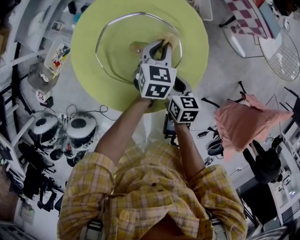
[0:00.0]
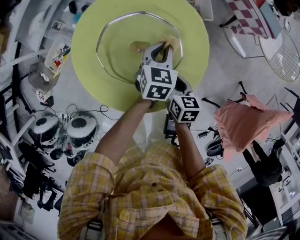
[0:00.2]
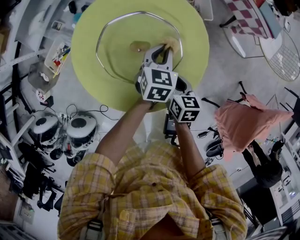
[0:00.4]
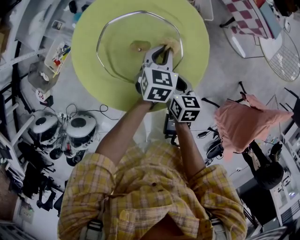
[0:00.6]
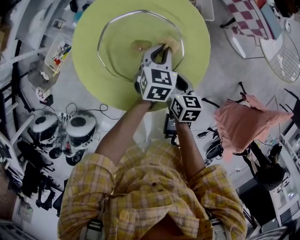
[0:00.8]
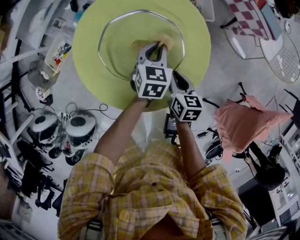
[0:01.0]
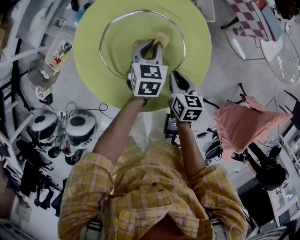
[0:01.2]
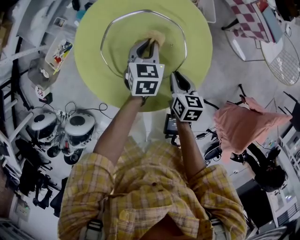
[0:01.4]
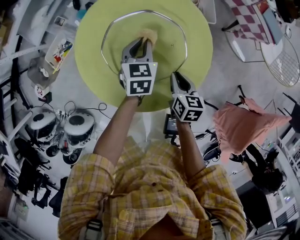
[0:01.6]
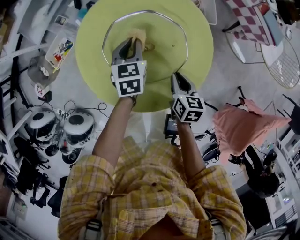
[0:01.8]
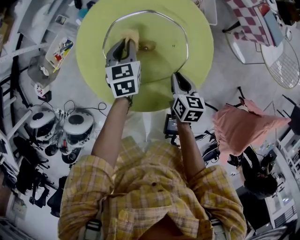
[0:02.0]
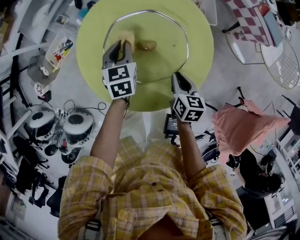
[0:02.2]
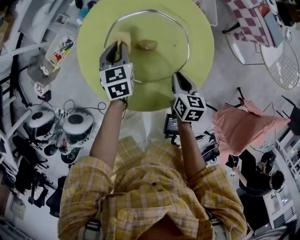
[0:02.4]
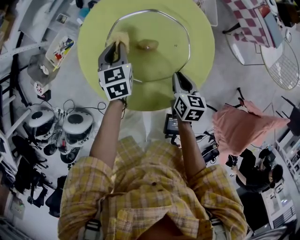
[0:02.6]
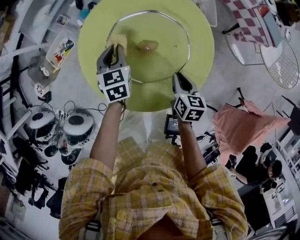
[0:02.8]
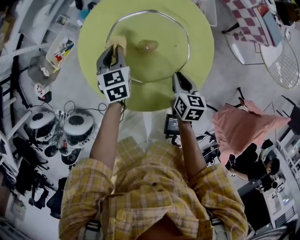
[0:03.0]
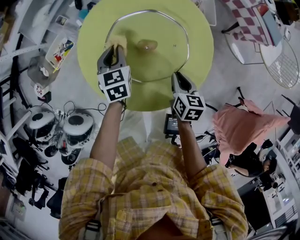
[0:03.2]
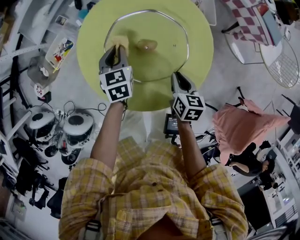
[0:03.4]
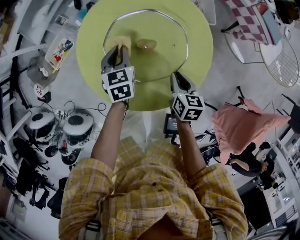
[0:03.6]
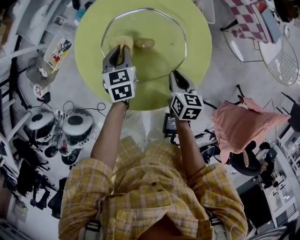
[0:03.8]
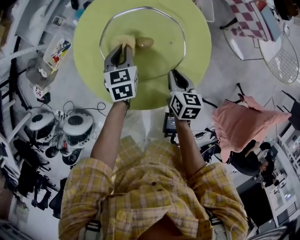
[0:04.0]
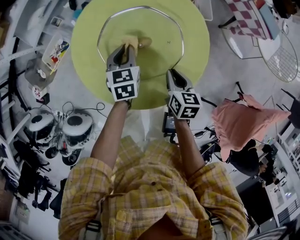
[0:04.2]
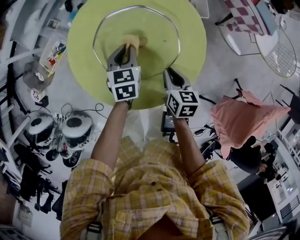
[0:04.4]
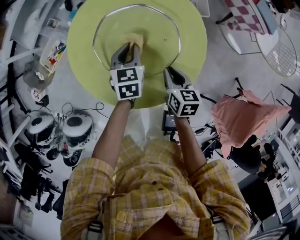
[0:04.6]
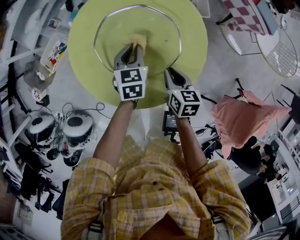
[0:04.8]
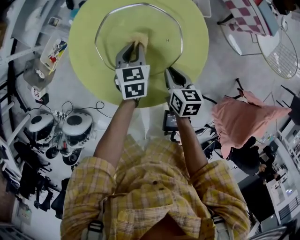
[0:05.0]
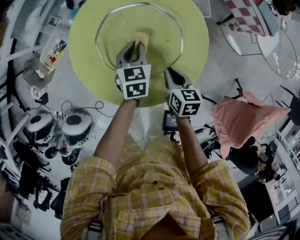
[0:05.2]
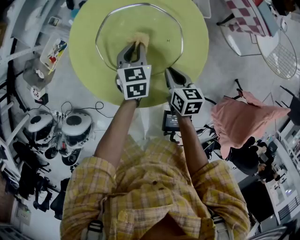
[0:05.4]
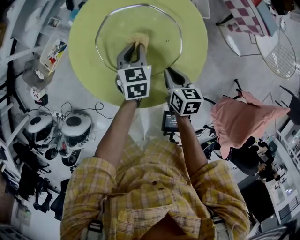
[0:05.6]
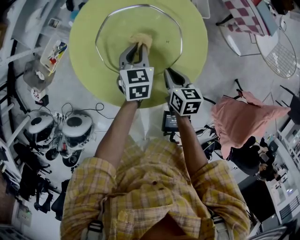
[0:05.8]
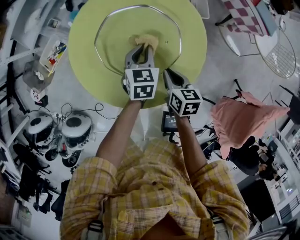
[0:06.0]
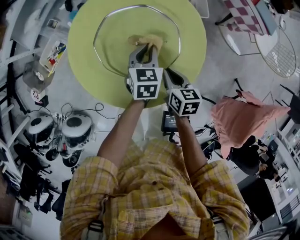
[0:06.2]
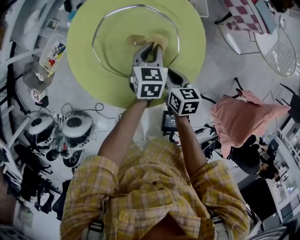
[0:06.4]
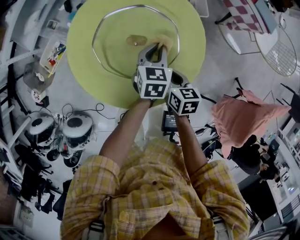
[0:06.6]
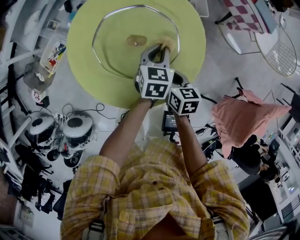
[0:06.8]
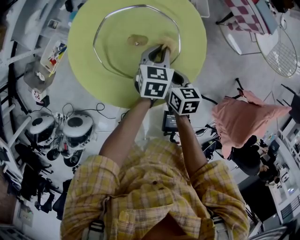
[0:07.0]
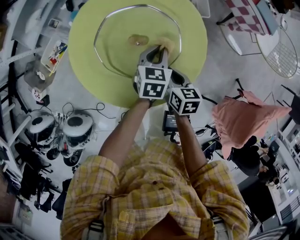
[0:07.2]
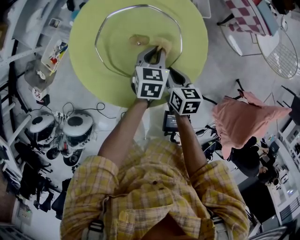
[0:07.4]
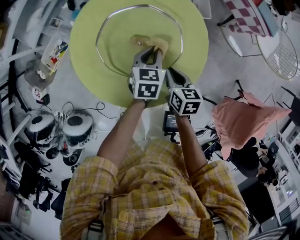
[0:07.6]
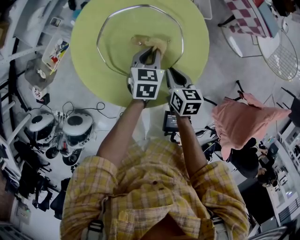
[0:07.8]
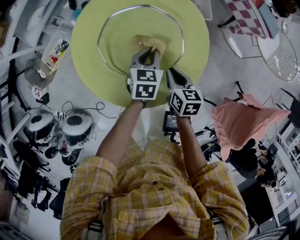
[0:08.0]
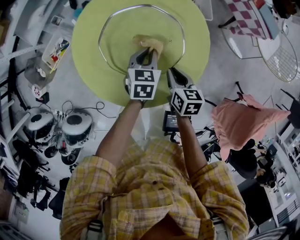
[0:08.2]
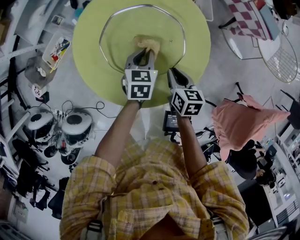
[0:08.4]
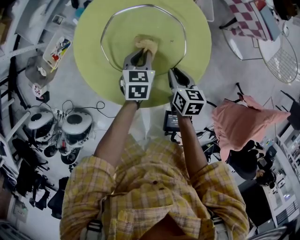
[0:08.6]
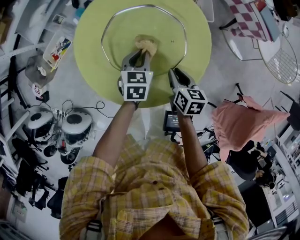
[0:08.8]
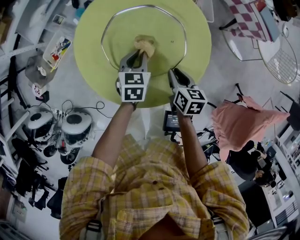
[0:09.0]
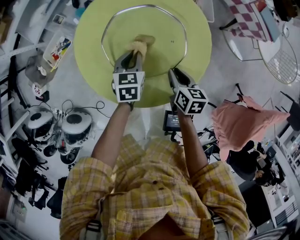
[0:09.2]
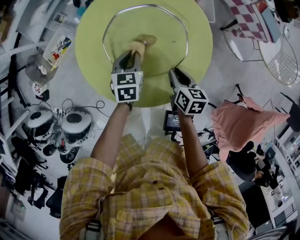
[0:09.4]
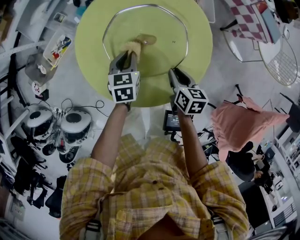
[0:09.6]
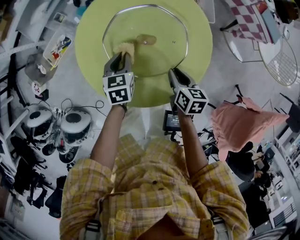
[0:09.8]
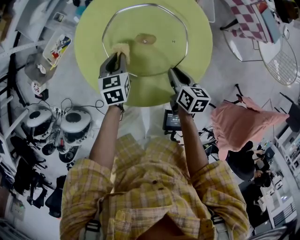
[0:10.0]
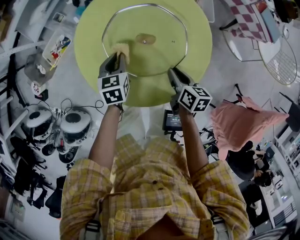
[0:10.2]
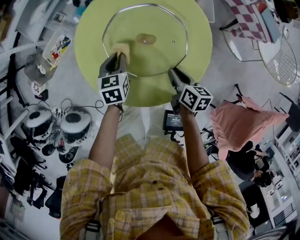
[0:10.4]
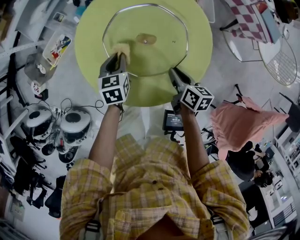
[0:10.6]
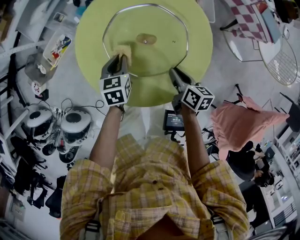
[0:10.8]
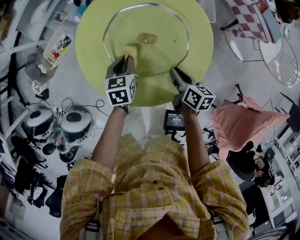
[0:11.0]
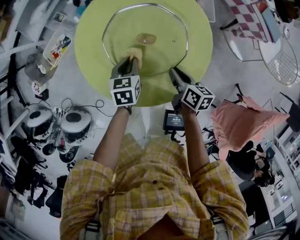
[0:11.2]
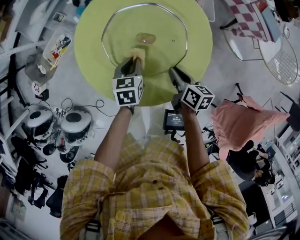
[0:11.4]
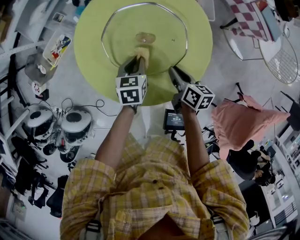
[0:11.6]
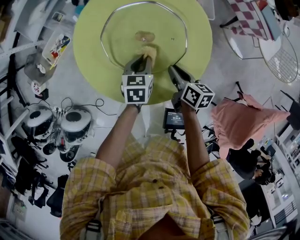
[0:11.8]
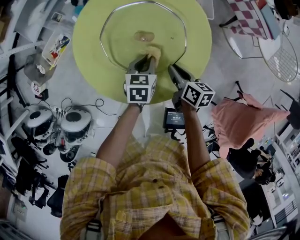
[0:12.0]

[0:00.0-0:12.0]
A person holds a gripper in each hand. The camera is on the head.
0:00.0 to 0:01.6: The left gripper goes about 10 cm to the left.
0:01.6 to 0:03.0: The left gripper travels to the left by approximately 10 cm.
0:03.0 to 0:04.4: The left gripper travels to the right by approximately 10 cm.
0:04.4 to 0:06.0: The left gripper is displaced to the right by some 5 cm.
0:07.6 to 0:09.0: The left gripper goes roughly 10 cm to the left.
0:09.0 to 0:10.4: The left gripper is displaced to the left by approximately 10 cm.
0:10.4 to 0:12.0: The left gripper shifts approximately 10 cm to the right.

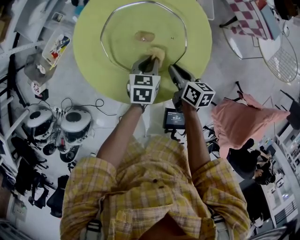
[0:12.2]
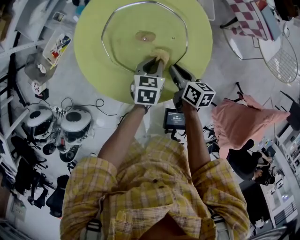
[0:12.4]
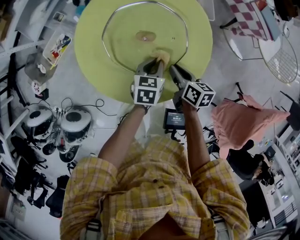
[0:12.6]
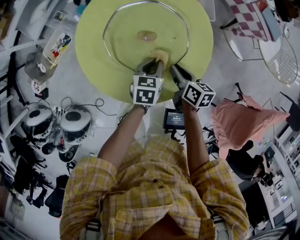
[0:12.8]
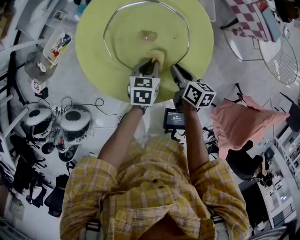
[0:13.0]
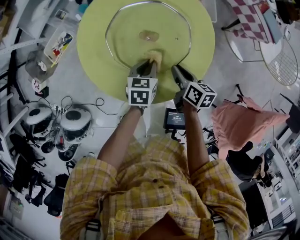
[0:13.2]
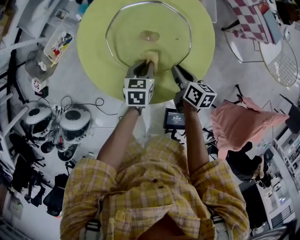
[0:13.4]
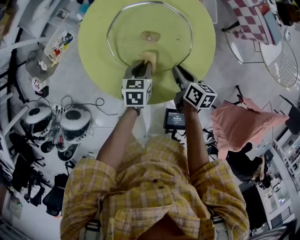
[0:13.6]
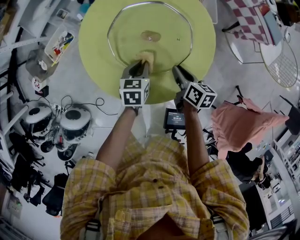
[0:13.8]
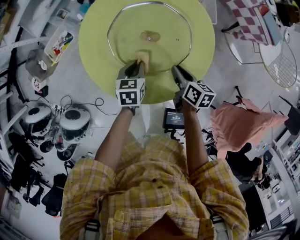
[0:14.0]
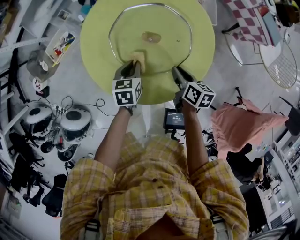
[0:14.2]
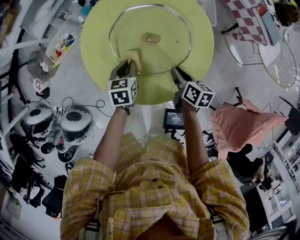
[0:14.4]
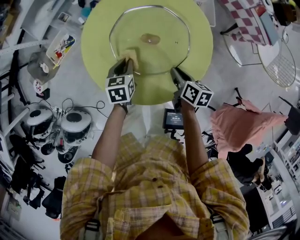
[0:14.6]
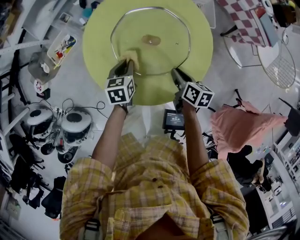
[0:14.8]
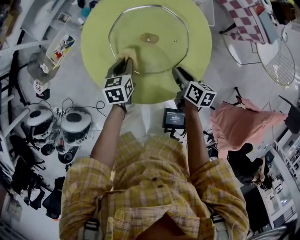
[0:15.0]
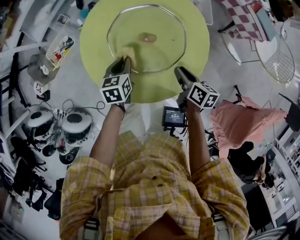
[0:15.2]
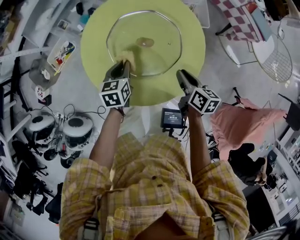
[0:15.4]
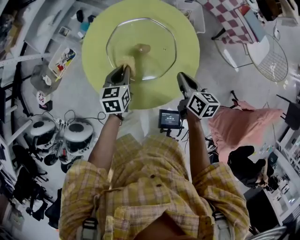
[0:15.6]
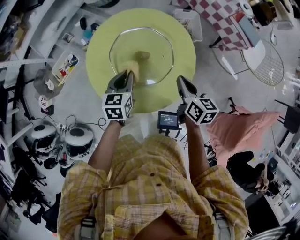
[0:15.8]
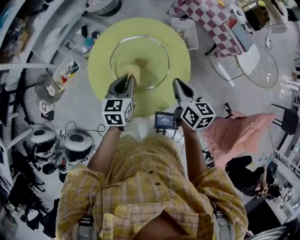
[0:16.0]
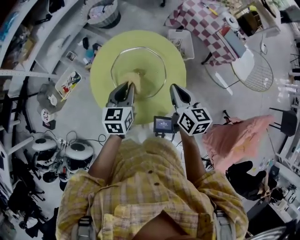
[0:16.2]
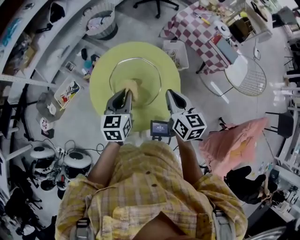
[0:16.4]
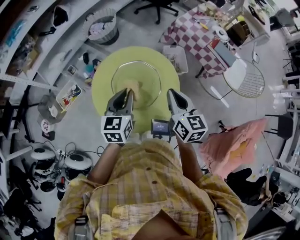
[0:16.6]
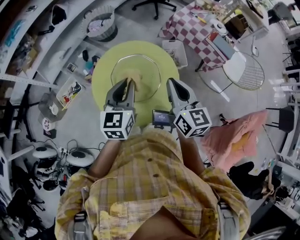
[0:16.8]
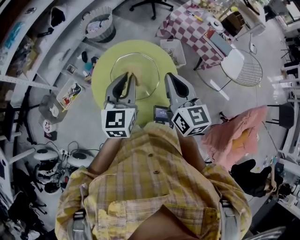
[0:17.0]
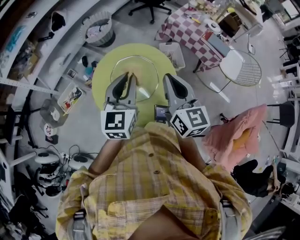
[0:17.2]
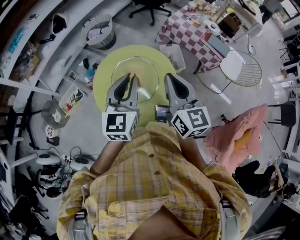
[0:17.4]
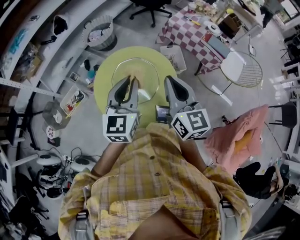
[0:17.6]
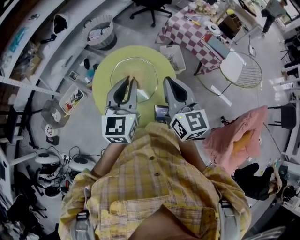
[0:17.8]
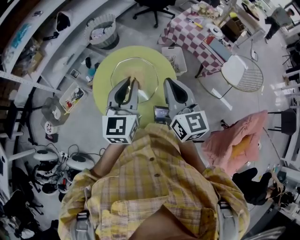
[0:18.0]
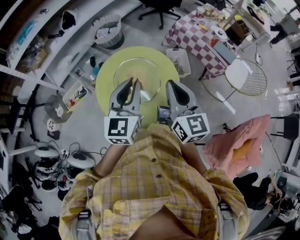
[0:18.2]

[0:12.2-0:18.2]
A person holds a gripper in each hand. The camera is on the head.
0:12.2 to 0:13.8: The left gripper heads to the left, covering approximately 5 cm.
0:13.8 to 0:15.2: The left gripper is displaced to the left by roughly 5 cm.
0:15.2 to 0:16.6: Both grippers move upward, some 35 cm. The right gripper changes its angle by roughly 40 degrees, and closes up; the left gripper changes its angle by some 30 degrees.
0:16.6 to 0:18.2: The left gripper moves upward, backward and to the right, roughly 15 cm, and rotates about 20 degrees; the right gripper moves upward and backward, some 10 cm.

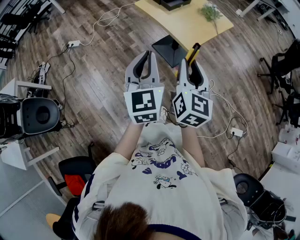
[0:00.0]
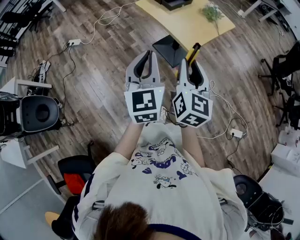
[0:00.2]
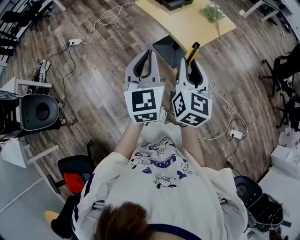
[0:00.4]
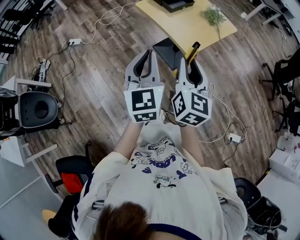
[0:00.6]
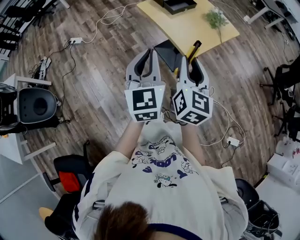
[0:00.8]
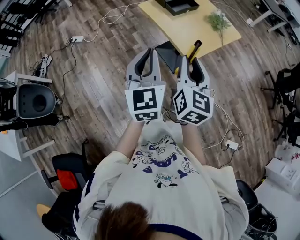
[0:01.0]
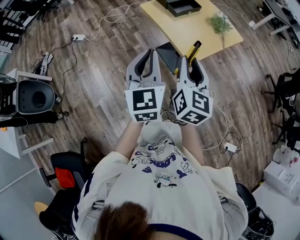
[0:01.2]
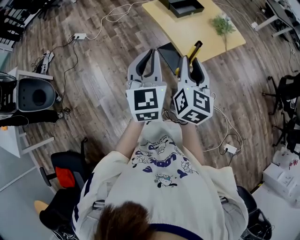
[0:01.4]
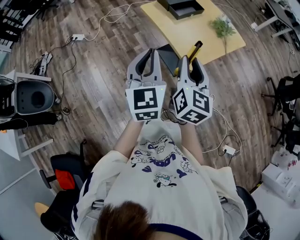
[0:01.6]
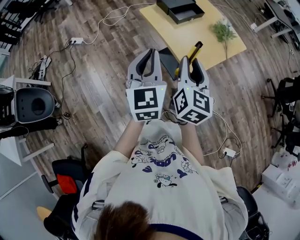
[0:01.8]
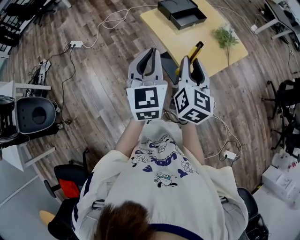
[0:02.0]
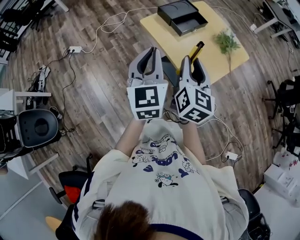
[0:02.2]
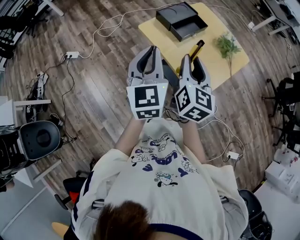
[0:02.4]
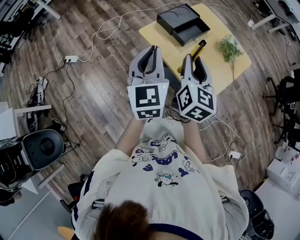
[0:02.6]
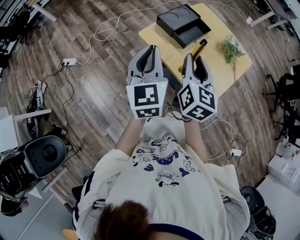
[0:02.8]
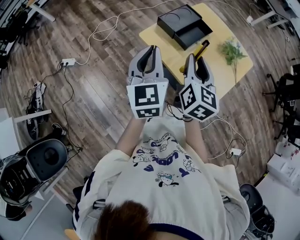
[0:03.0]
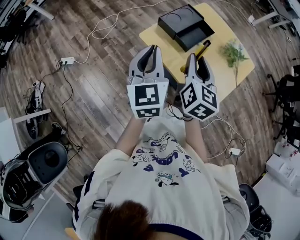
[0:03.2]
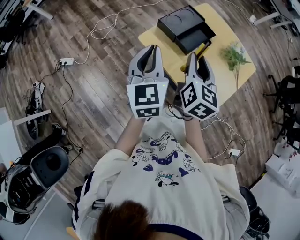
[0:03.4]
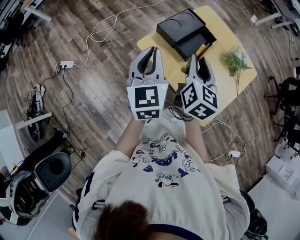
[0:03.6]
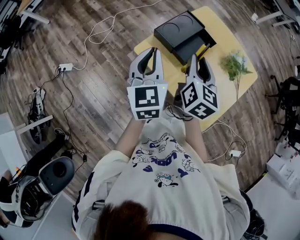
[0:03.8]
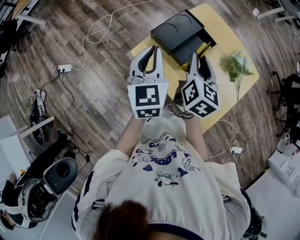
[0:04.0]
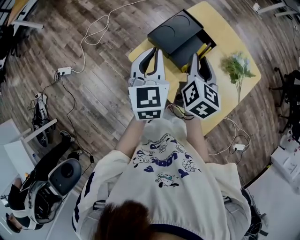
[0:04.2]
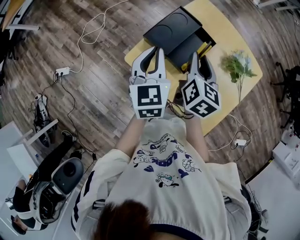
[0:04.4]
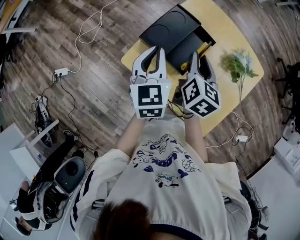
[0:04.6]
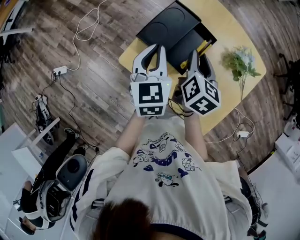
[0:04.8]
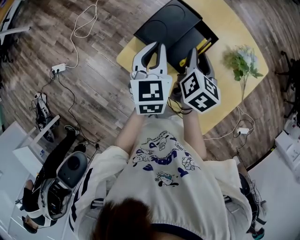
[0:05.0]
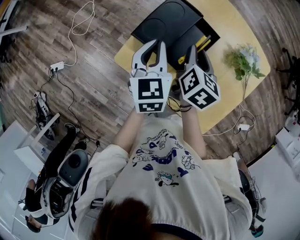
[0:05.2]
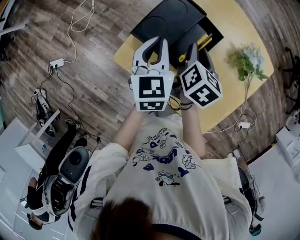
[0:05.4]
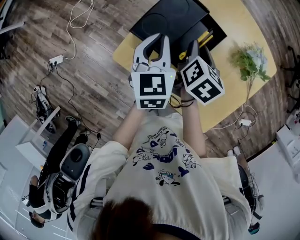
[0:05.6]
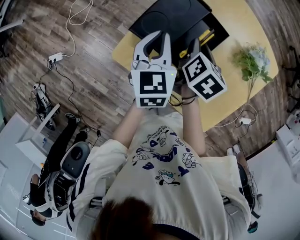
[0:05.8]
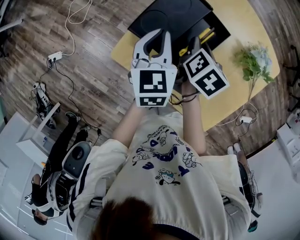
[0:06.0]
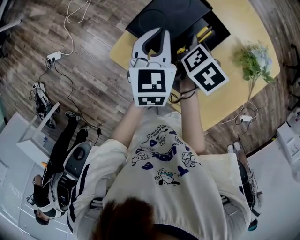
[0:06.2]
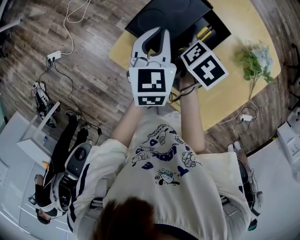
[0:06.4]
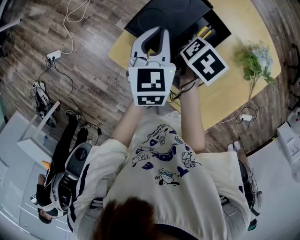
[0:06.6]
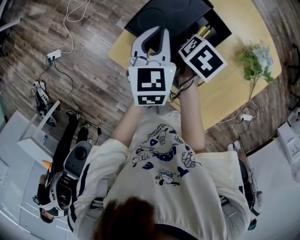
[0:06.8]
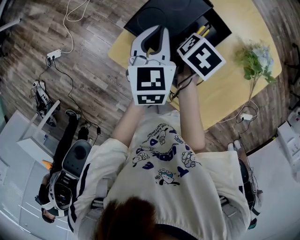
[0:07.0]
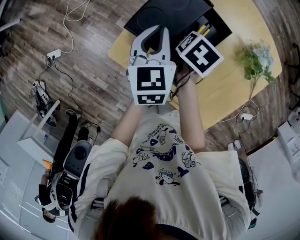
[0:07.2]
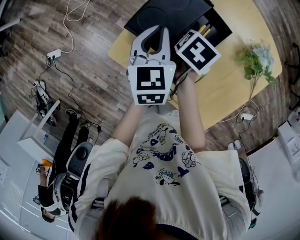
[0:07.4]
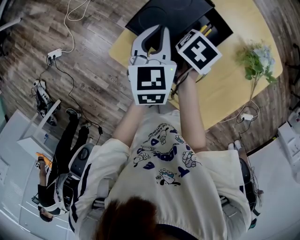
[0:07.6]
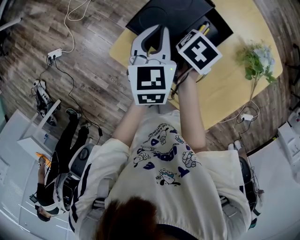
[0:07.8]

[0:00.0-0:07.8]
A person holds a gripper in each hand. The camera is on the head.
0:00.0 to 0:01.6: Both grippers travel together forward, roughly 15 cm.
0:01.6 to 0:03.2: The two grippers go some 30 cm forward.
0:03.2 to 0:04.6: Both grippers move forward and downward, some 25 cm.
0:04.6 to 0:06.2: The right gripper shifts some 15 cm downward, and rotates about 30 degrees. The left gripper moves downward and forward, about 10 cm.
0:06.2 to 0:07.8: The grippers make only small movements.
